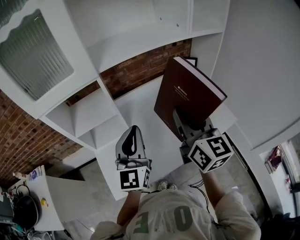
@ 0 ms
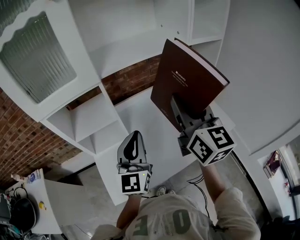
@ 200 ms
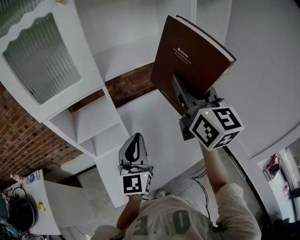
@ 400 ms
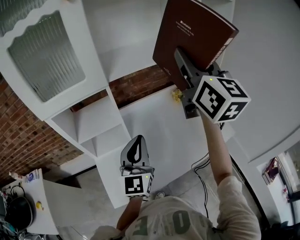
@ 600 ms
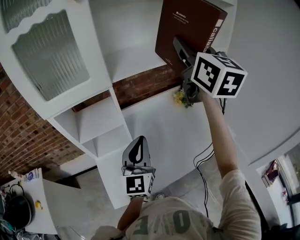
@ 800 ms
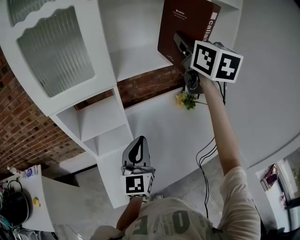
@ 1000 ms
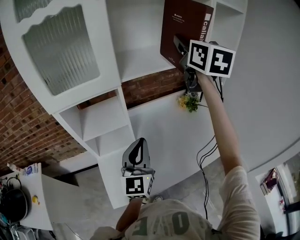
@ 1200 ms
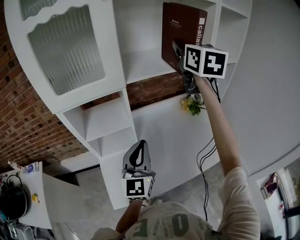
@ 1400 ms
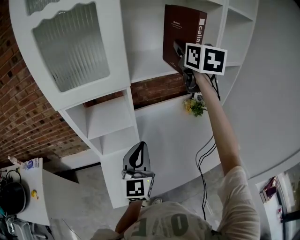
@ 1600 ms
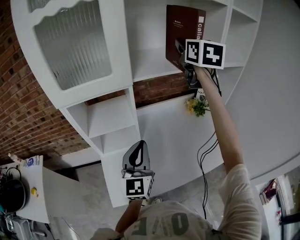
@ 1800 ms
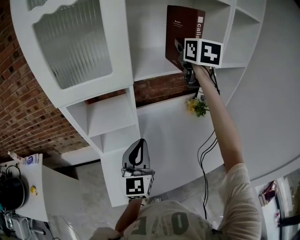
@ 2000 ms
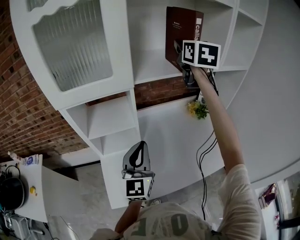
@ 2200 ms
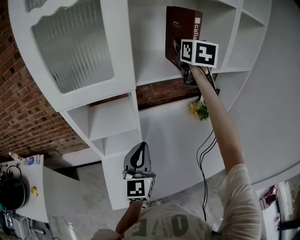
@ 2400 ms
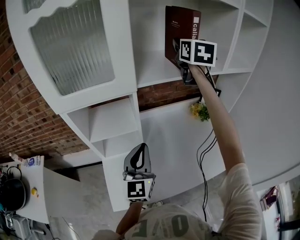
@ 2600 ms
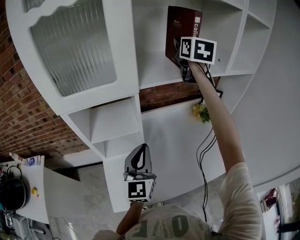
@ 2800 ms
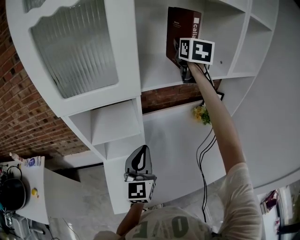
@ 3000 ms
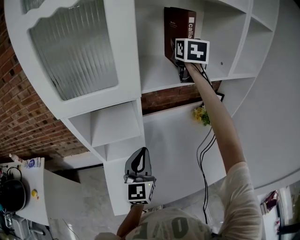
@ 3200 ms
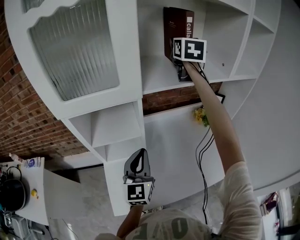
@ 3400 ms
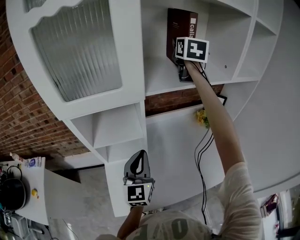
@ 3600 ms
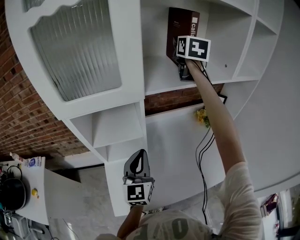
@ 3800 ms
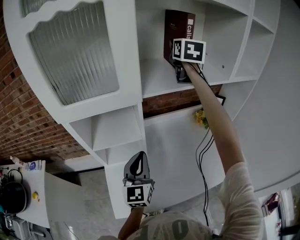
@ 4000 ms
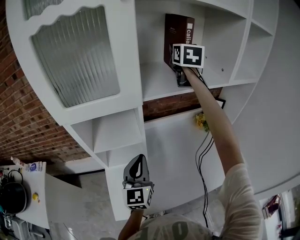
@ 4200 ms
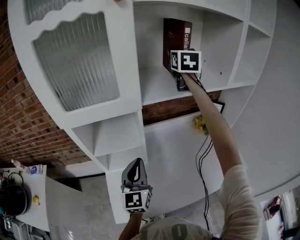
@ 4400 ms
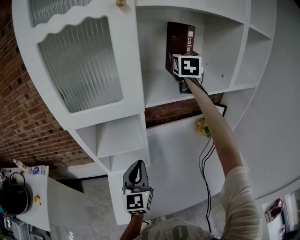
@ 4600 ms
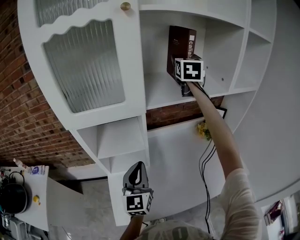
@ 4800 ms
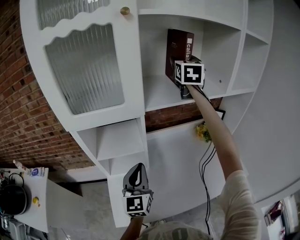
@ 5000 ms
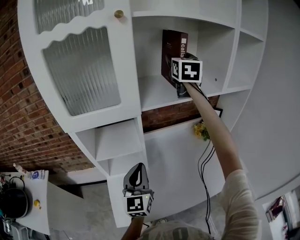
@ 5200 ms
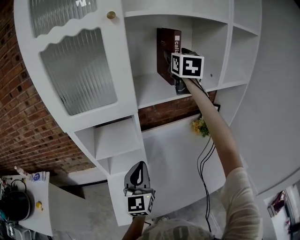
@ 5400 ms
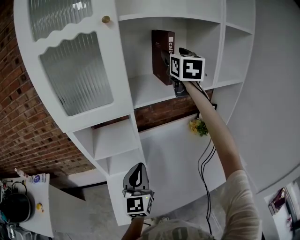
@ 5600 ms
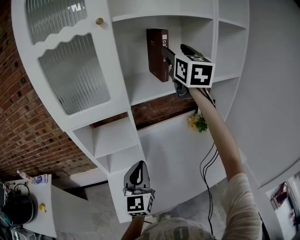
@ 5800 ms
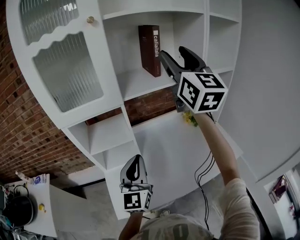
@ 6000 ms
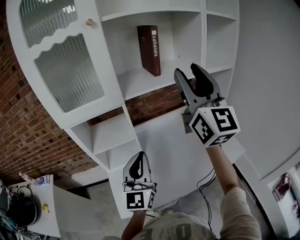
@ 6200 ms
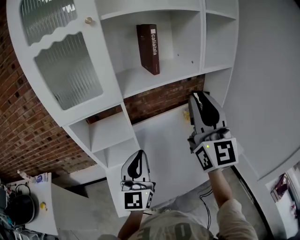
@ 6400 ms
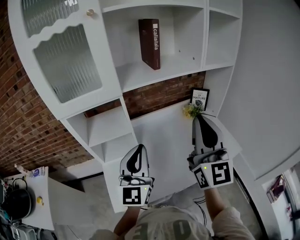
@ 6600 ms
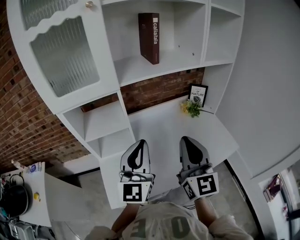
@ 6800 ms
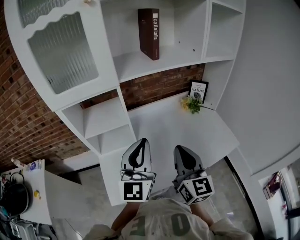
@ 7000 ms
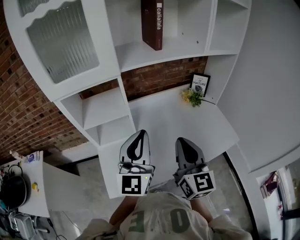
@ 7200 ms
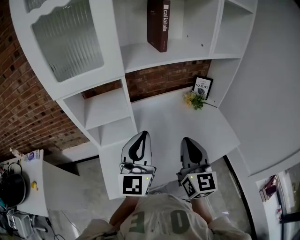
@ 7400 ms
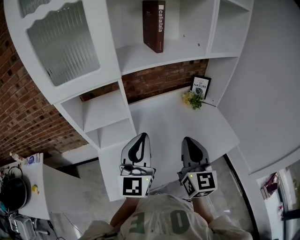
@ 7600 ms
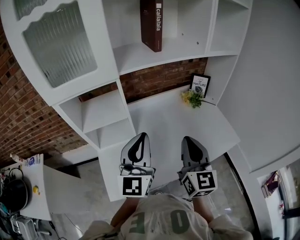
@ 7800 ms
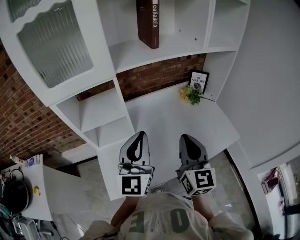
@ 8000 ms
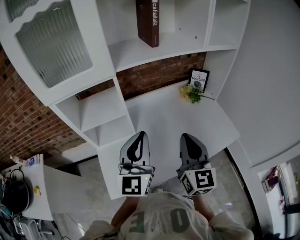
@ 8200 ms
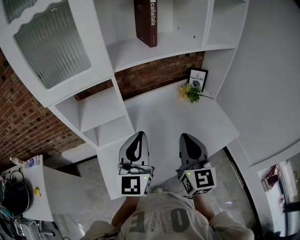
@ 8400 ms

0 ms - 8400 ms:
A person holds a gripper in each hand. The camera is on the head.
0 ms - 1400 ms: The right gripper shifts about 30 cm forward and upward.
1400 ms - 2800 ms: The right gripper is displaced forward by some 10 cm. The left gripper shifts by roughly 5 cm.
2800 ms - 4200 ms: The right gripper shifts by approximately 5 cm.
4200 ms - 5600 ms: The left gripper moves roughly 5 cm, while the right gripper heads backward and upward, covering about 10 cm, and opens up.
5600 ms - 7000 ms: The left gripper shifts approximately 10 cm to the right and upward, while the right gripper heads backward and downward, covering roughly 50 cm, and closes.
7000 ms - 8400 ms: The grippers stay close to where they were, moving slightly.

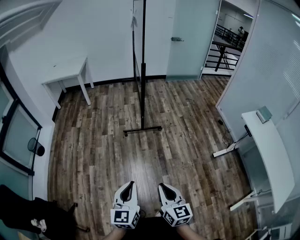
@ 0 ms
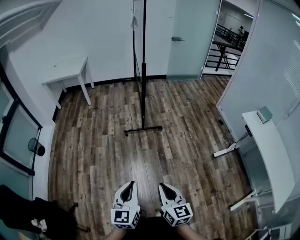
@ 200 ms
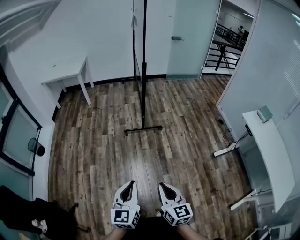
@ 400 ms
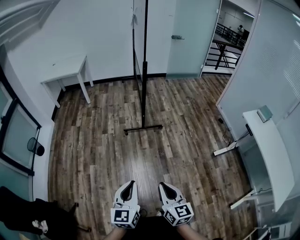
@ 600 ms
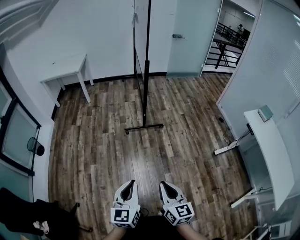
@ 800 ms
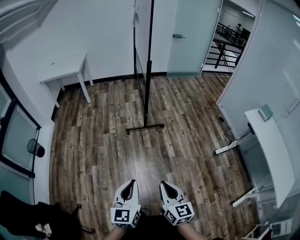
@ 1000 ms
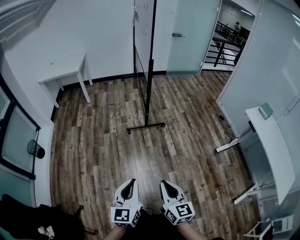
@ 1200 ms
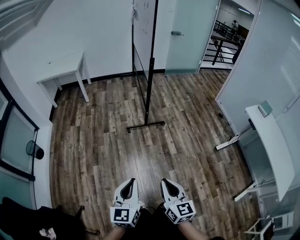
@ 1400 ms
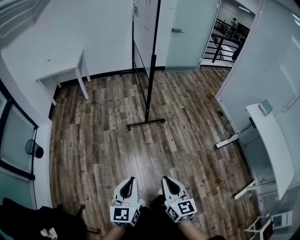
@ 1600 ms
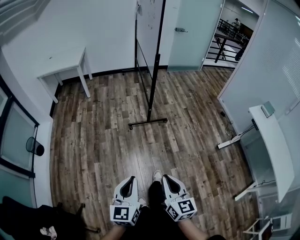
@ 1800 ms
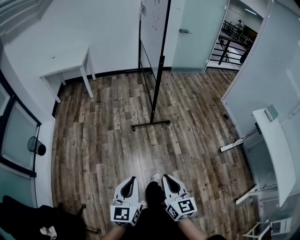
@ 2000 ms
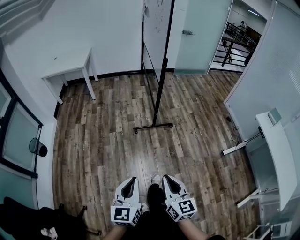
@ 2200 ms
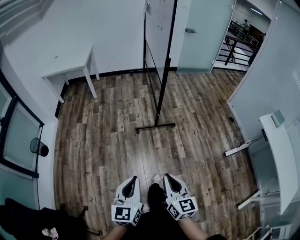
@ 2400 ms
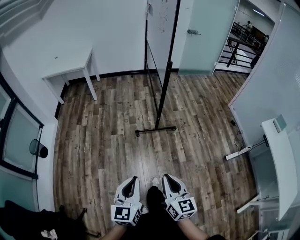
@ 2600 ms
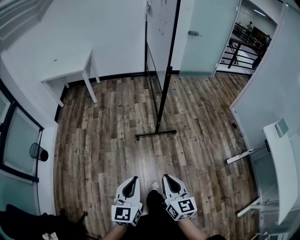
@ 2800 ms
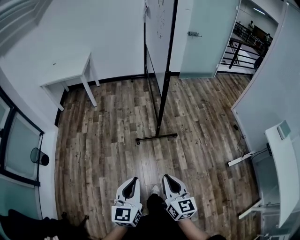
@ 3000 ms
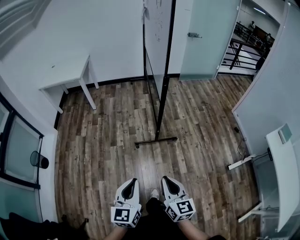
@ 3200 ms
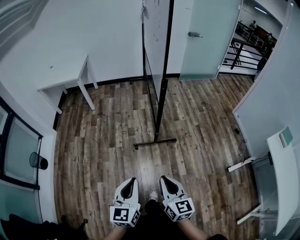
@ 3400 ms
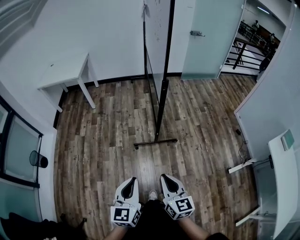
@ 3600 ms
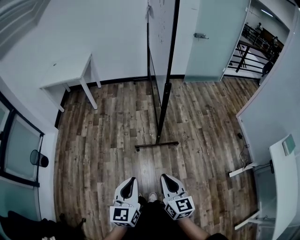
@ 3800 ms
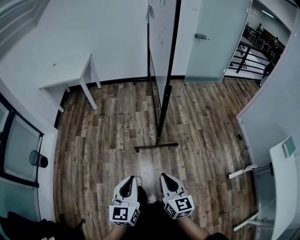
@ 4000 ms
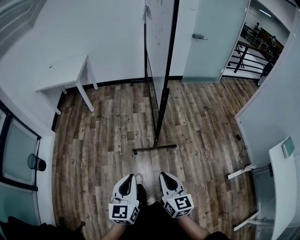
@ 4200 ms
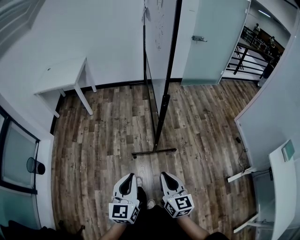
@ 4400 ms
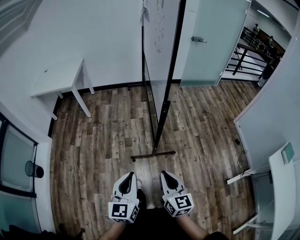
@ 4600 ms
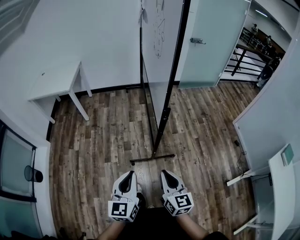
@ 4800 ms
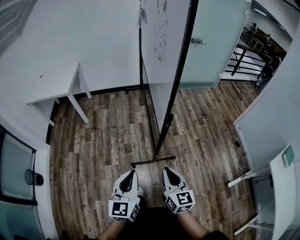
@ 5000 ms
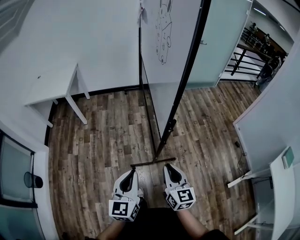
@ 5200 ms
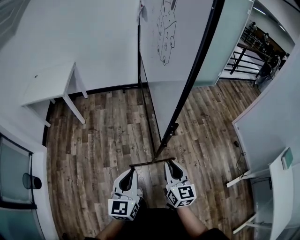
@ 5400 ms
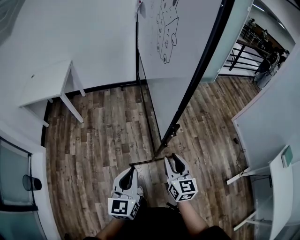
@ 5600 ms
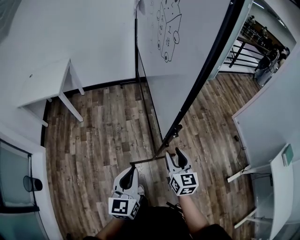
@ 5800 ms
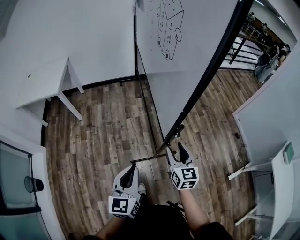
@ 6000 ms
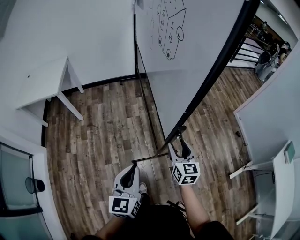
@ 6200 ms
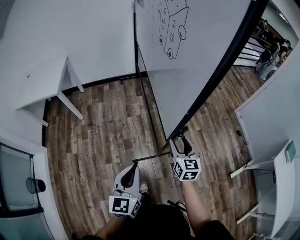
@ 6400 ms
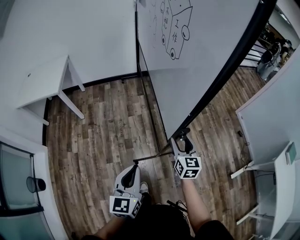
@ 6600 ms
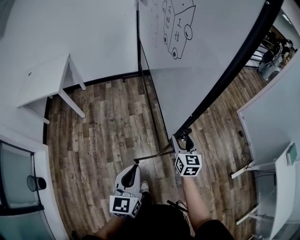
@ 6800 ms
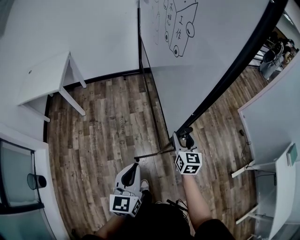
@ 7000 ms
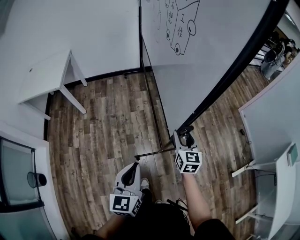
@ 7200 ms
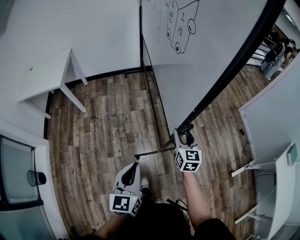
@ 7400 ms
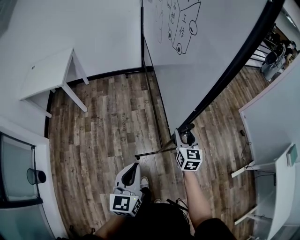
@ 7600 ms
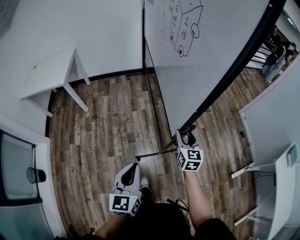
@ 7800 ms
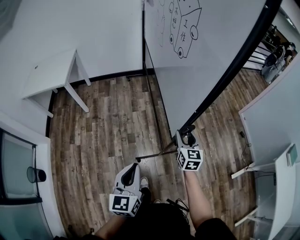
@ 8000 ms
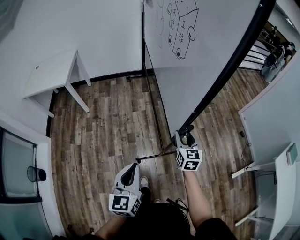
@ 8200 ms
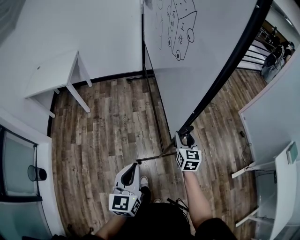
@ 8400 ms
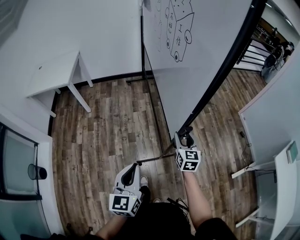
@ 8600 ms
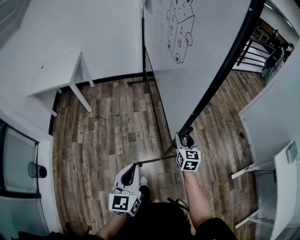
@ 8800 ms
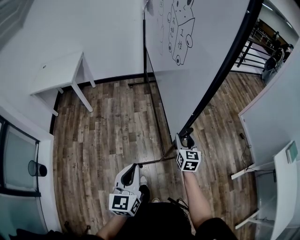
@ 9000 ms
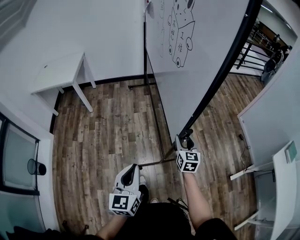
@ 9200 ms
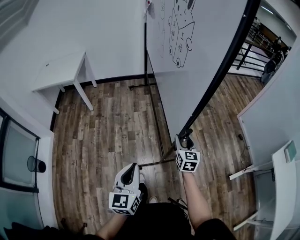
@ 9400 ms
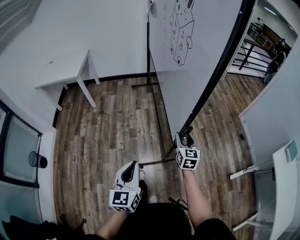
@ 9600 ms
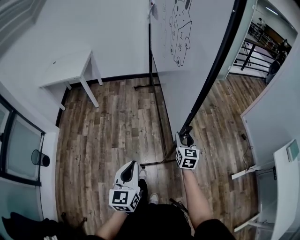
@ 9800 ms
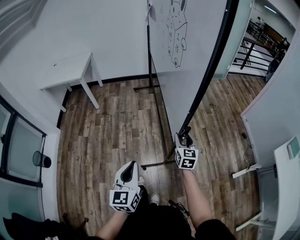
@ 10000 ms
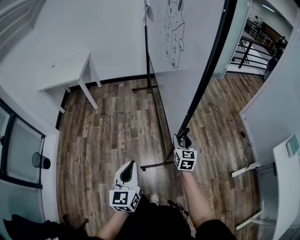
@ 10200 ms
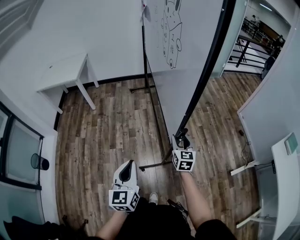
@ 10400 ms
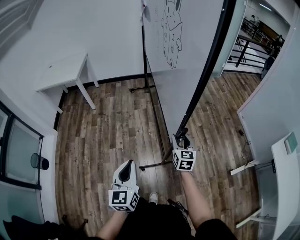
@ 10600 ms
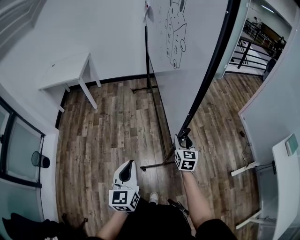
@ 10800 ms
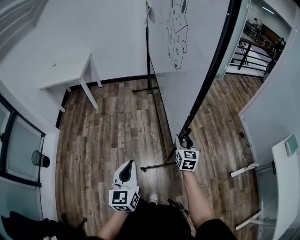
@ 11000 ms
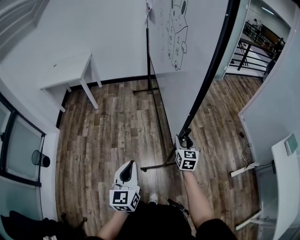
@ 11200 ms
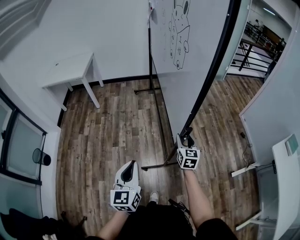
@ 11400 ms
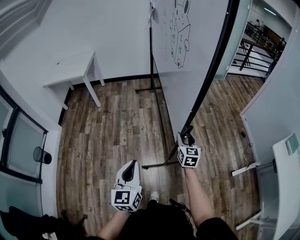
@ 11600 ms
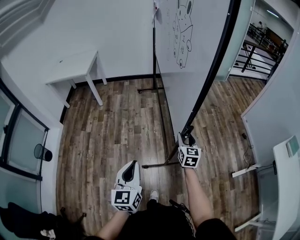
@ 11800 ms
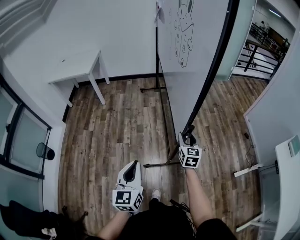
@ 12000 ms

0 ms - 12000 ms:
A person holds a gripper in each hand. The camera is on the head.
0 ms - 1600 ms: The right gripper moves to the left and forward, roughly 15 cm. Meanwhile the left gripper goes approximately 15 cm to the left.
1600 ms - 3000 ms: The two grippers go some 25 cm forward.
3000 ms - 4400 ms: The two grippers go approximately 20 cm forward.
4400 ms - 6000 ms: The grippers both shift forward by approximately 30 cm. The right gripper opens its fingers.
6000 ms - 7600 ms: The right gripper heads forward, covering about 5 cm.
7600 ms - 9000 ms: The two grippers go approximately 10 cm backward.
9000 ms - 10400 ms: The right gripper goes approximately 10 cm backward; the left gripper goes approximately 15 cm backward and to the right.
10400 ms - 12000 ms: The left gripper moves backward, approximately 10 cm.

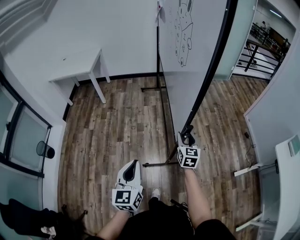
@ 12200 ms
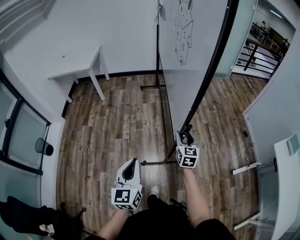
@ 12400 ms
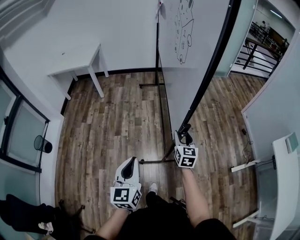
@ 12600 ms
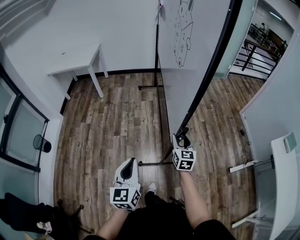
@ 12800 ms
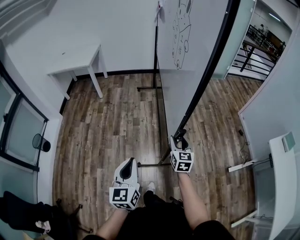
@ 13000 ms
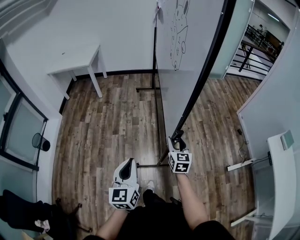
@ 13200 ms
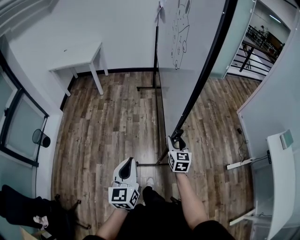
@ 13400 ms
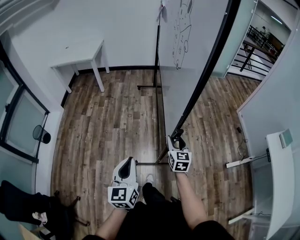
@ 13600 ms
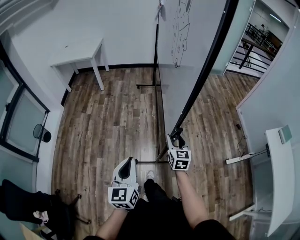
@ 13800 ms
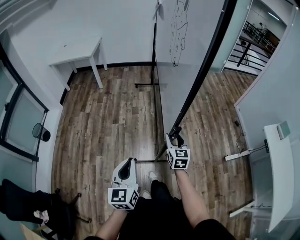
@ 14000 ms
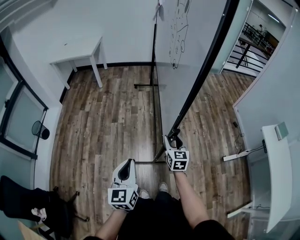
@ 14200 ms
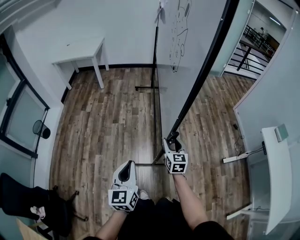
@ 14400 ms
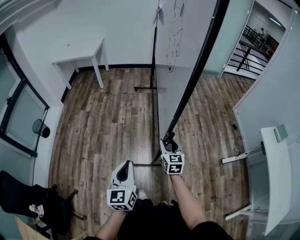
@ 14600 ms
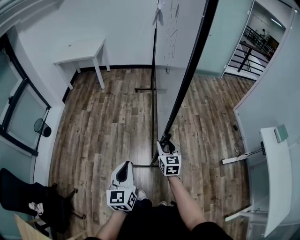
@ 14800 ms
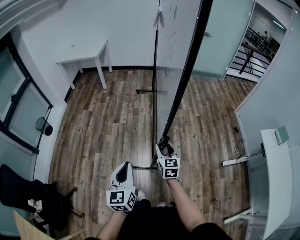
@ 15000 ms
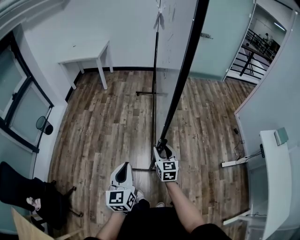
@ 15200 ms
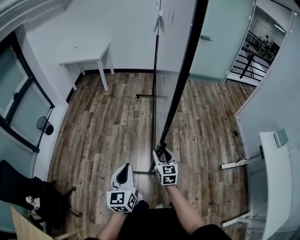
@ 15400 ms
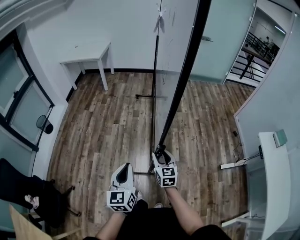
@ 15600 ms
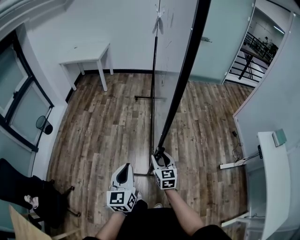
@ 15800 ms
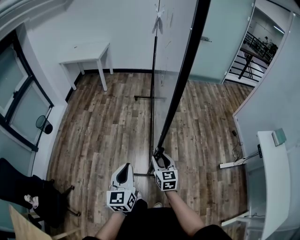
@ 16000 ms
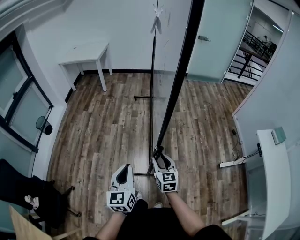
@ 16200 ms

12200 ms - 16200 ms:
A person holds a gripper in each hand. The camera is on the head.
12200 ms - 13600 ms: The two grippers go some 15 cm backward.
13600 ms - 14800 ms: Both grippers travel together backward, approximately 10 cm.
14800 ms - 16200 ms: The right gripper moves backward, roughly 10 cm; the left gripper travels backward by about 5 cm.
